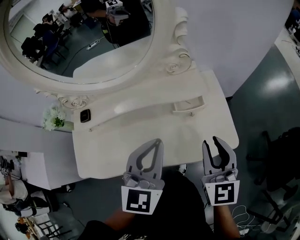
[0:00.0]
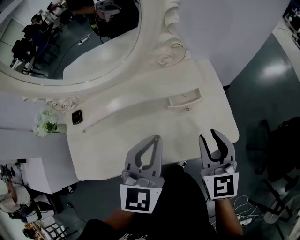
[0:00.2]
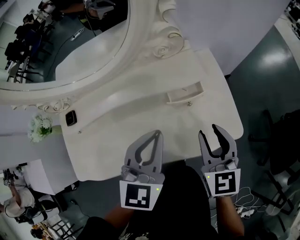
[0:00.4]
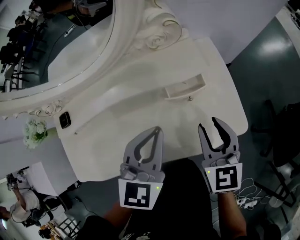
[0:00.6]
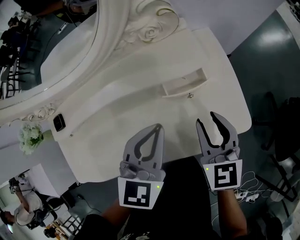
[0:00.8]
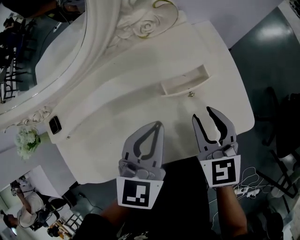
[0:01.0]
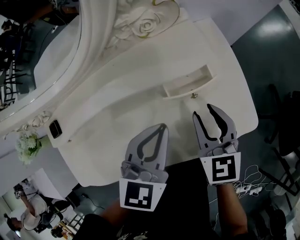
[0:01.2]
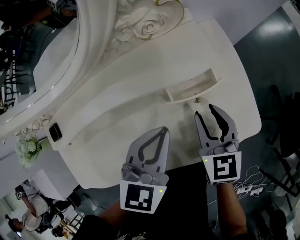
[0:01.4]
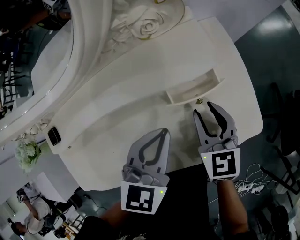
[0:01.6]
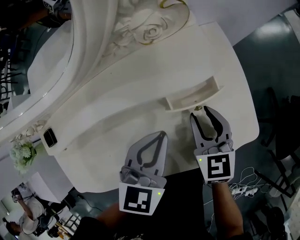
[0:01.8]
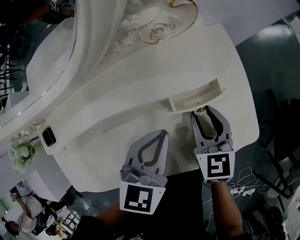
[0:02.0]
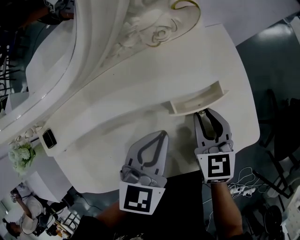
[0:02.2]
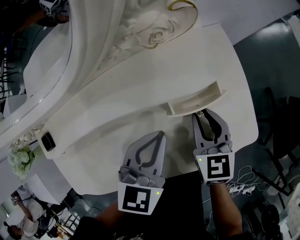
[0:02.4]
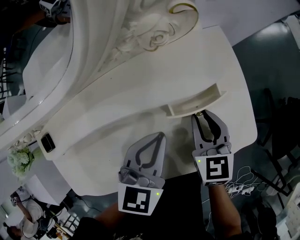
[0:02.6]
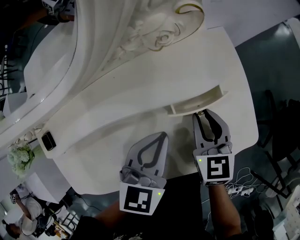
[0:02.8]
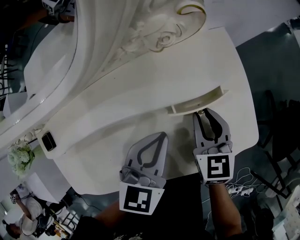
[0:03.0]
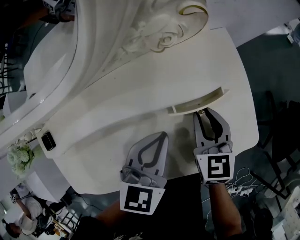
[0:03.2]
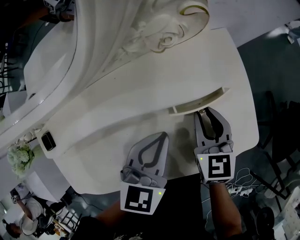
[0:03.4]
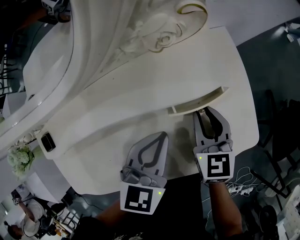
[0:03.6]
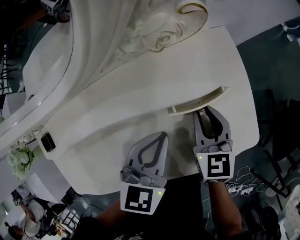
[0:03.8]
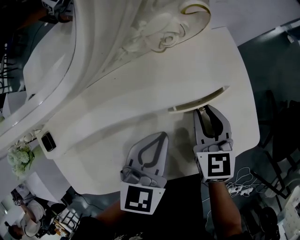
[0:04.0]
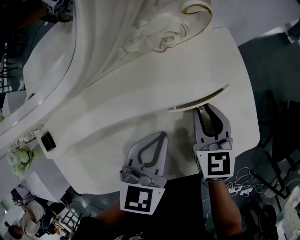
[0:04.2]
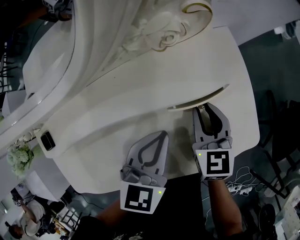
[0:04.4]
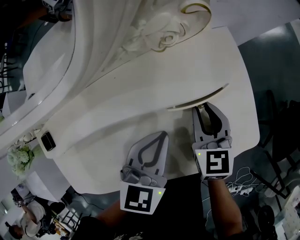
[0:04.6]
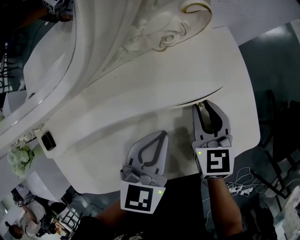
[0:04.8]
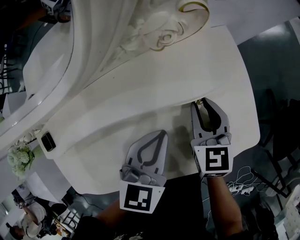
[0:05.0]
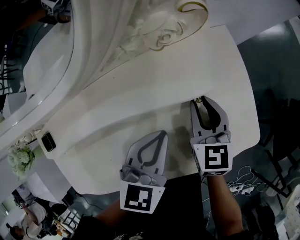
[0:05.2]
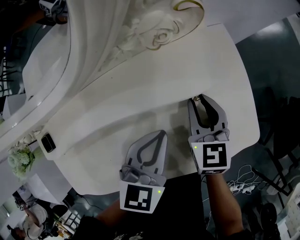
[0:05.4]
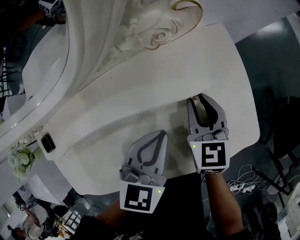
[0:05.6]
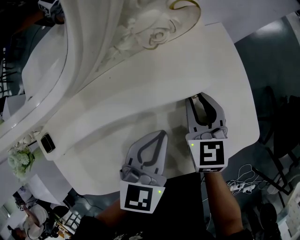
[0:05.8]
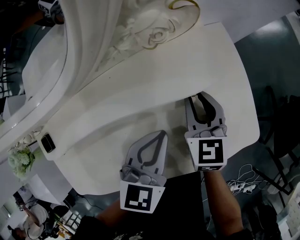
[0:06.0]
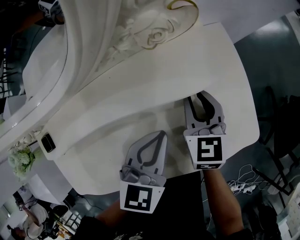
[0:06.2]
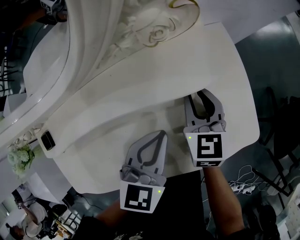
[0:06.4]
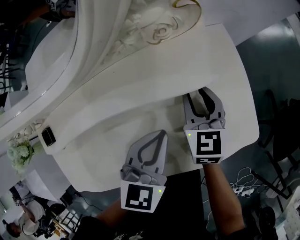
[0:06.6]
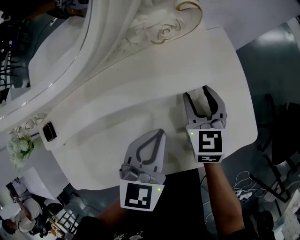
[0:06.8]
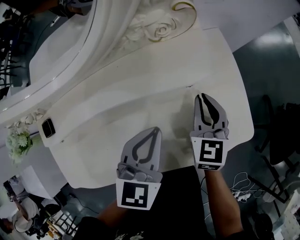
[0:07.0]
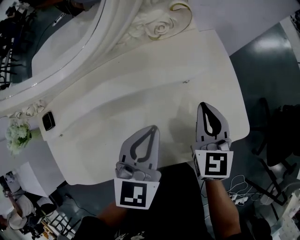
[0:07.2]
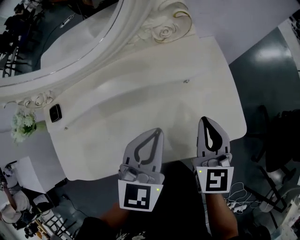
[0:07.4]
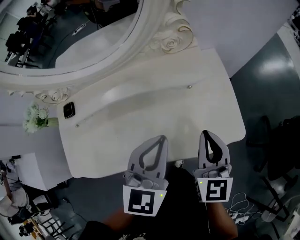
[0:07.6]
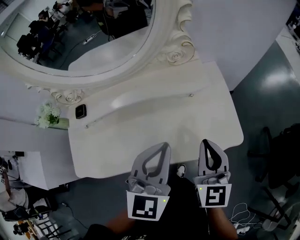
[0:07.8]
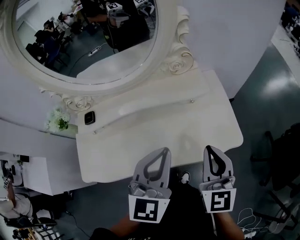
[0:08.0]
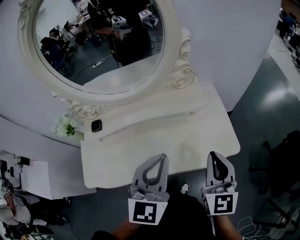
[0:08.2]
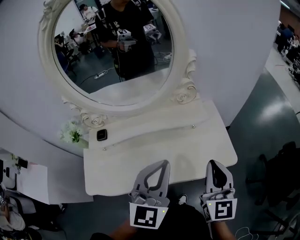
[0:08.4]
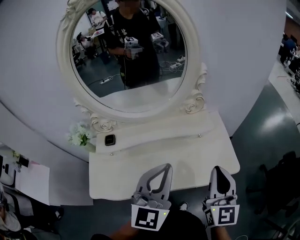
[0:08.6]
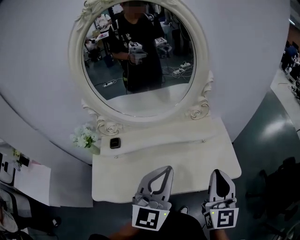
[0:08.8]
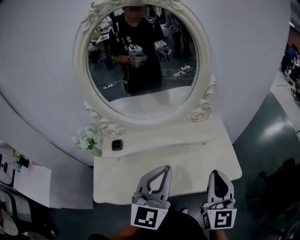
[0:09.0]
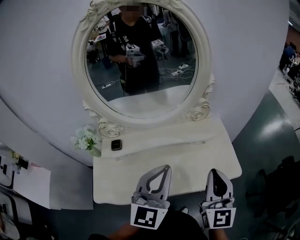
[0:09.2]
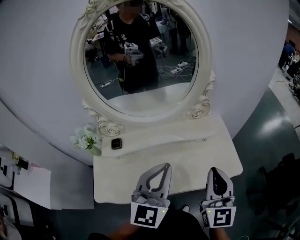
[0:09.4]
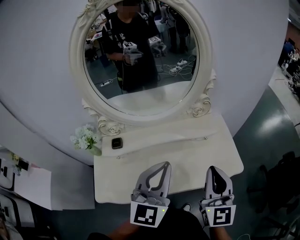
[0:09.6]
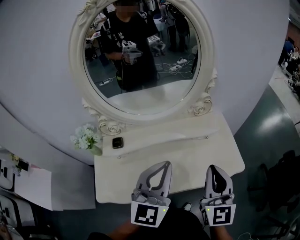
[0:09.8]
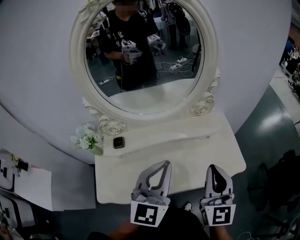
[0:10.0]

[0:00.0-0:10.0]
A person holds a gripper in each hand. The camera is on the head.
0:00.0 to 0:01.4: Both grippers move downward and forward, some 20 cm. The left gripper changes its angle by about 20 degrees.
0:01.4 to 0:02.8: The grippers stay close to where they were, moving slightly.
0:02.8 to 0:05.8: The grippers stay close to where they were, moving slightly.
0:05.8 to 0:07.2: The left gripper shifts by about 5 cm, while the right gripper goes some 10 cm upward and backward, and opens, then closes once more.
0:07.2 to 0:08.6: Both grippers travel together upward and backward, approximately 25 cm. The left gripper swivels some 30 degrees. The right gripper turns by approximately 30 degrees.
0:08.6 to 0:10.0: Both grippers move to the left, approximately 10 cm.

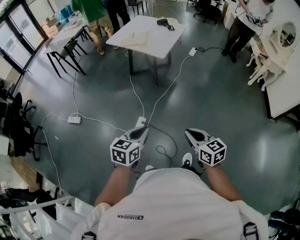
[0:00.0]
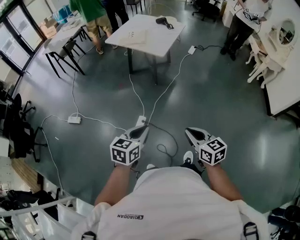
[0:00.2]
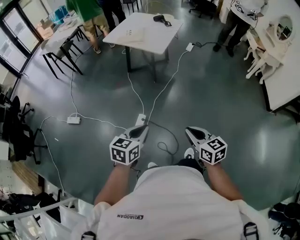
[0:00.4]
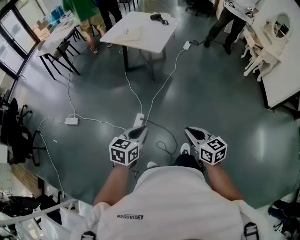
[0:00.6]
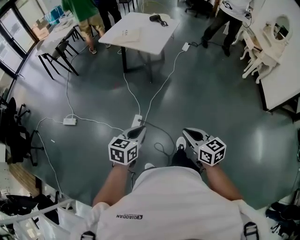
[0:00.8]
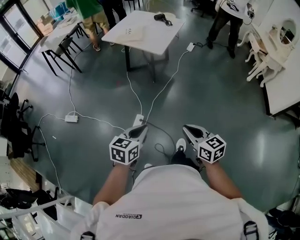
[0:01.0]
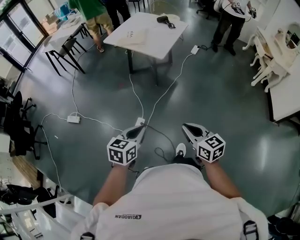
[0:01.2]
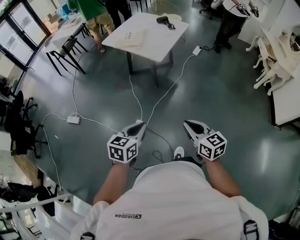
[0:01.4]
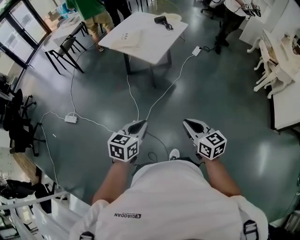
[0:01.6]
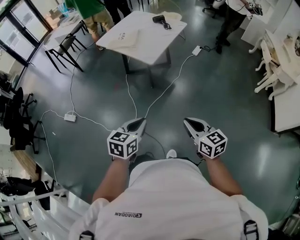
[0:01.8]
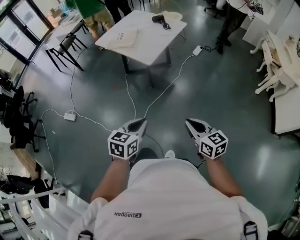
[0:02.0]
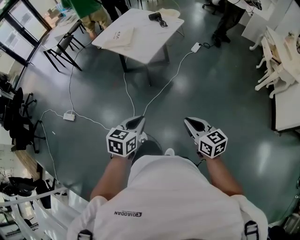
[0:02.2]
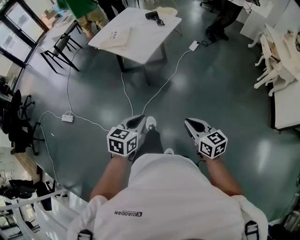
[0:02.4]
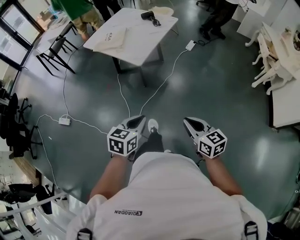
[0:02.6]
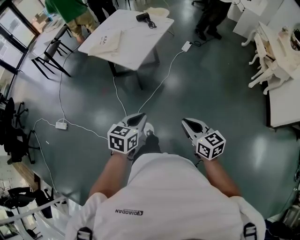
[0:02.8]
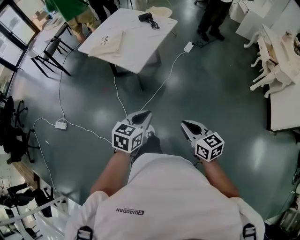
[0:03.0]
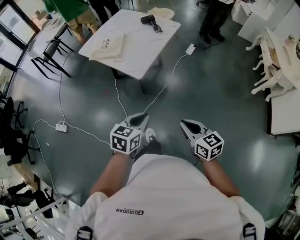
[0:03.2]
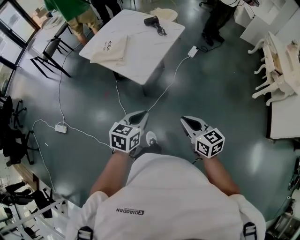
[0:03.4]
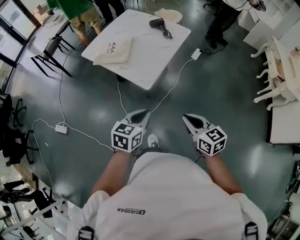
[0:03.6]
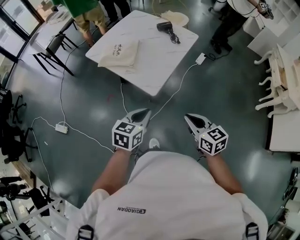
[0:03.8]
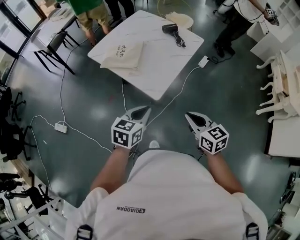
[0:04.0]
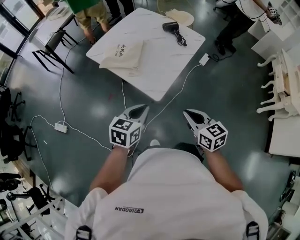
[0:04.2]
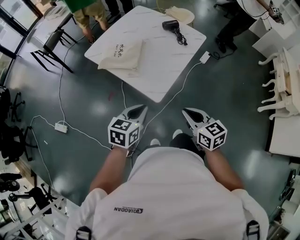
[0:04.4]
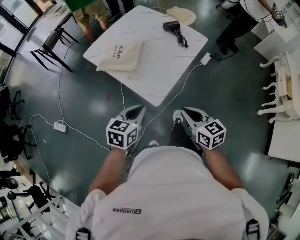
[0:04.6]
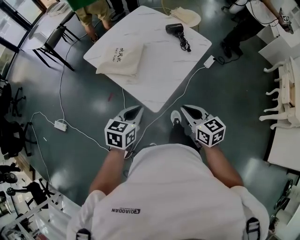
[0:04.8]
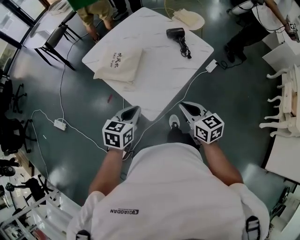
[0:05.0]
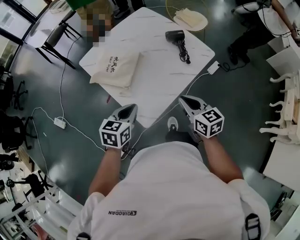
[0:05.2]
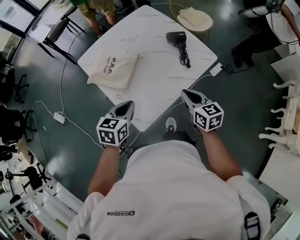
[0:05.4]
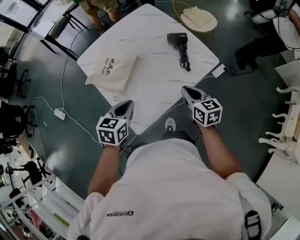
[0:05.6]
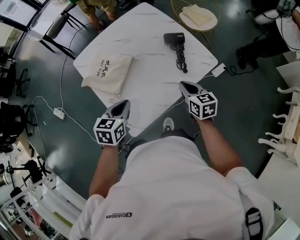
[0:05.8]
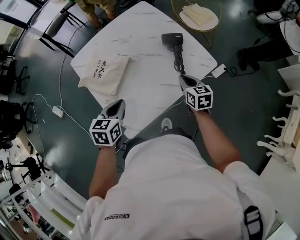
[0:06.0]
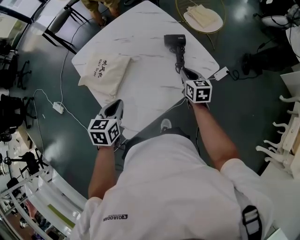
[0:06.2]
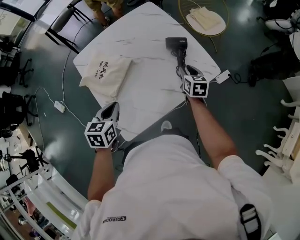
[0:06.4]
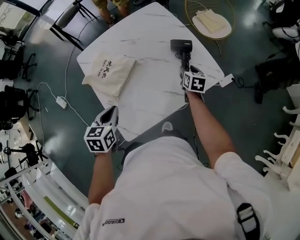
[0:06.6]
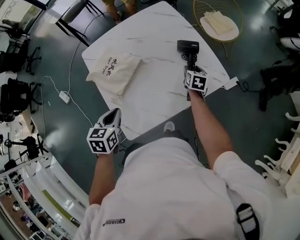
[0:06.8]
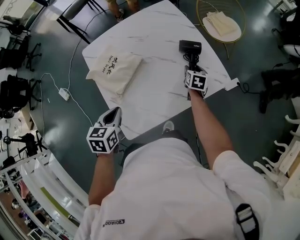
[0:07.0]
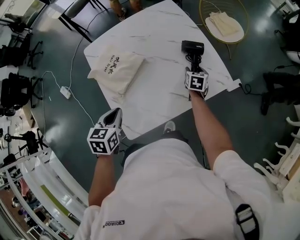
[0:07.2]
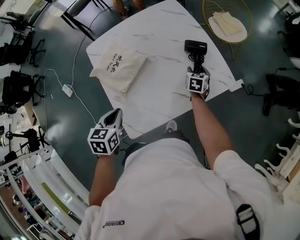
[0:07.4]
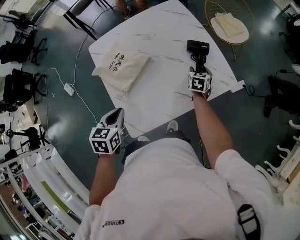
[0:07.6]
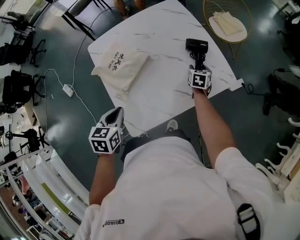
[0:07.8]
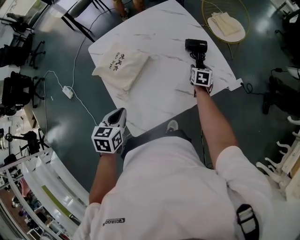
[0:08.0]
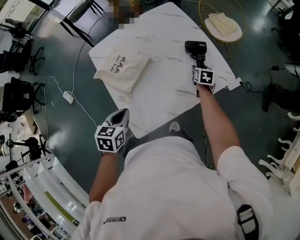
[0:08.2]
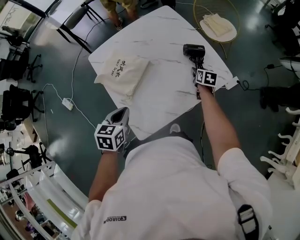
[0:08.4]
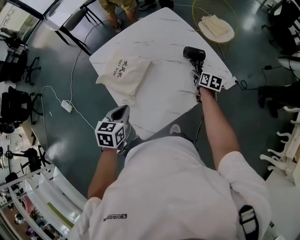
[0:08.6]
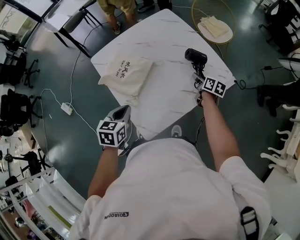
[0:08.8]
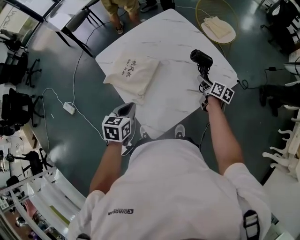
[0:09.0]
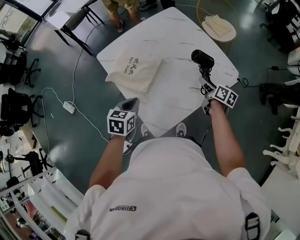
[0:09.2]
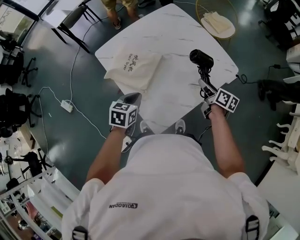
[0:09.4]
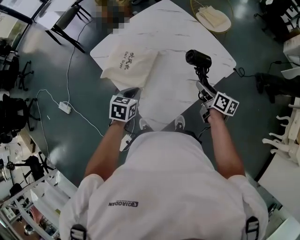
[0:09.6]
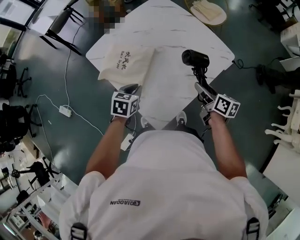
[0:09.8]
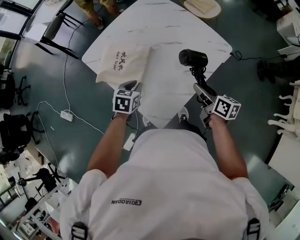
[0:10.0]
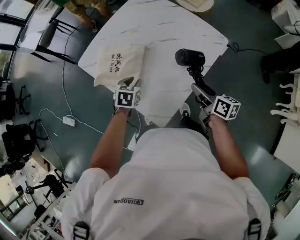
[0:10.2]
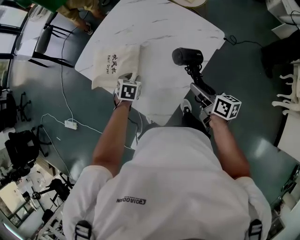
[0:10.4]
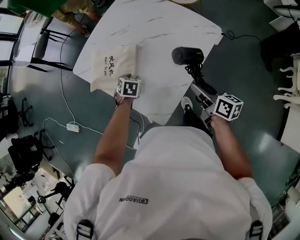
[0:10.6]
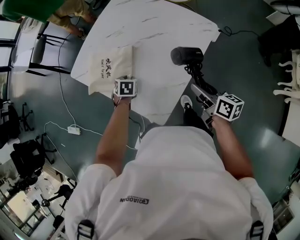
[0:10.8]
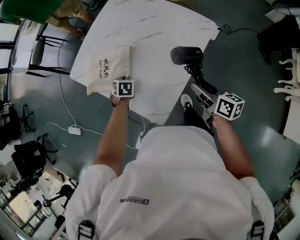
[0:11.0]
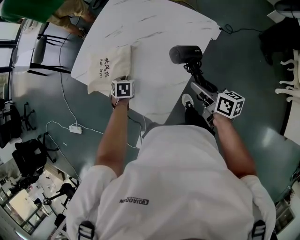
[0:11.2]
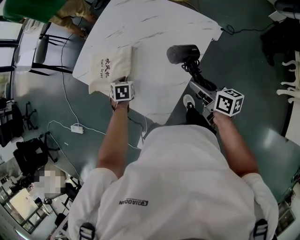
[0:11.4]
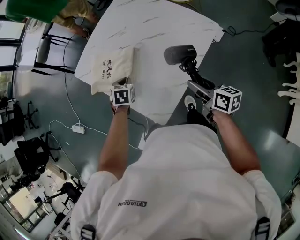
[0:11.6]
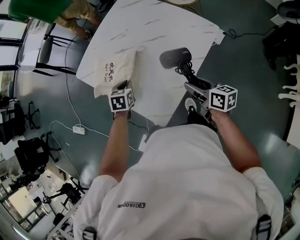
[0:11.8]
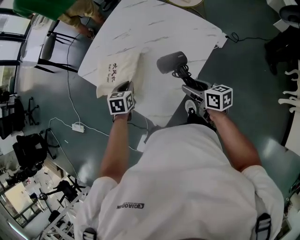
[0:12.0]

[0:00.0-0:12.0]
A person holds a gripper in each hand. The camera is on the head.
0:00.0 to 0:01.6: Both grippers move forward and to the right, approximately 20 cm.
0:01.6 to 0:03.0: The grippers both shift forward and to the right by about 20 cm.
0:03.0 to 0:04.4: The right gripper heads forward, covering roughly 35 cm, while the left gripper moves forward and to the left, some 35 cm.
0:04.4 to 0:06.0: The right gripper shifts some 50 cm forward and to the right. The left gripper goes some 30 cm forward, and turns by roughly 30 degrees.
0:06.0 to 0:07.6: The right gripper heads forward and downward, covering approximately 20 cm, changes its angle by roughly 20 degrees, and opens its fingers.
0:07.6 to 0:09.0: The left gripper is displaced to the left by approximately 5 cm. Meanwhile the right gripper travels backward and upward by some 15 cm, and turns by roughly 40 degrees.
0:09.0 to 0:10.4: The right gripper is displaced backward and upward by approximately 20 cm; the left gripper goes some 15 cm downward and forward, rotates approximately 30 degrees, and opens up.
0:10.4 to 0:12.0: The left gripper closes up.

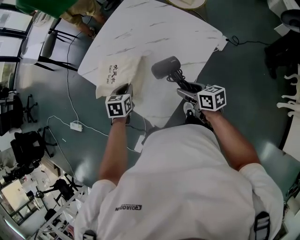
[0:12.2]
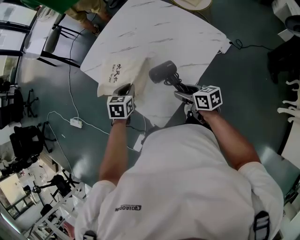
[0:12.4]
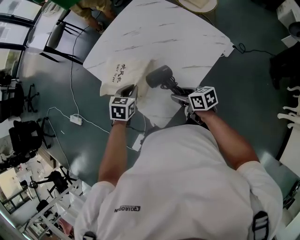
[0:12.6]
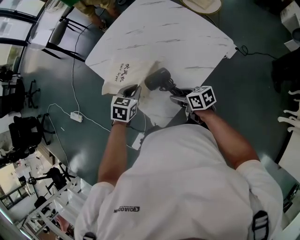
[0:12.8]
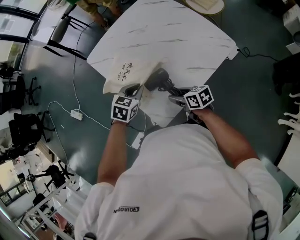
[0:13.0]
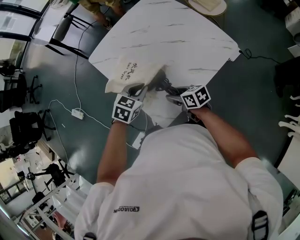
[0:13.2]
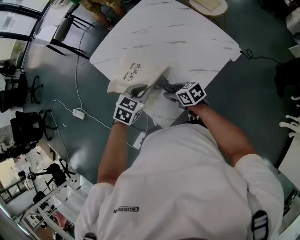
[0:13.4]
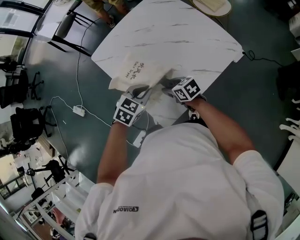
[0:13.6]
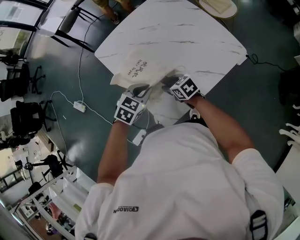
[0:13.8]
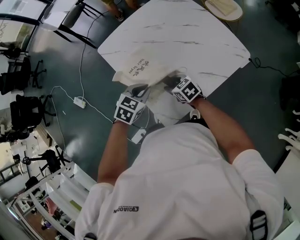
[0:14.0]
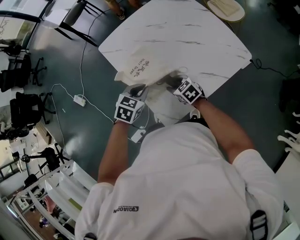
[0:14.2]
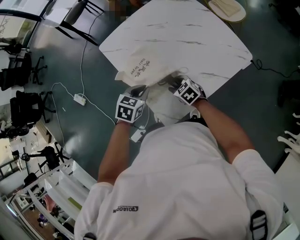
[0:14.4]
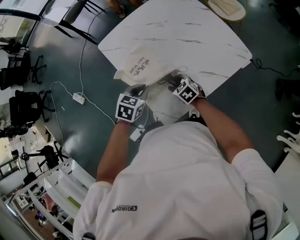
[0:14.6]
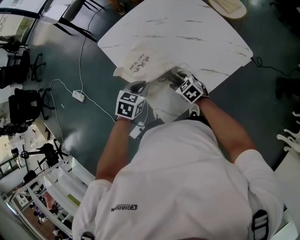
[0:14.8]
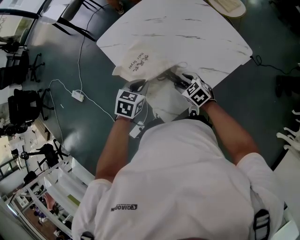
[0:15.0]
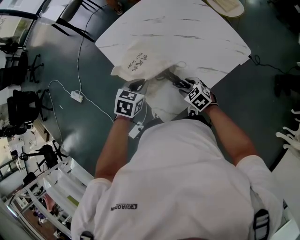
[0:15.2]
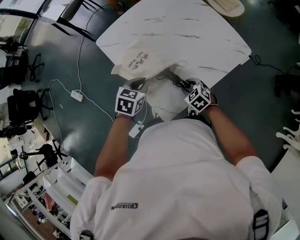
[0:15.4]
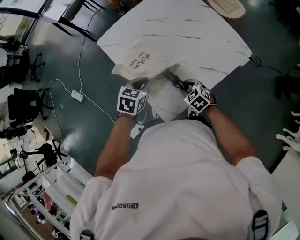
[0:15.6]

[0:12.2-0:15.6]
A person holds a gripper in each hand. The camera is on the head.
0:12.2 to 0:13.8: The right gripper goes about 15 cm to the left, forward and downward, and rotates roughly 40 degrees. Meanwhile the left gripper shifts by approximately 5 cm, and changes its angle by some 20 degrees.
0:13.8 to 0:15.6: The right gripper moves backward and to the right, roughly 10 cm, and changes its angle by about 30 degrees.
